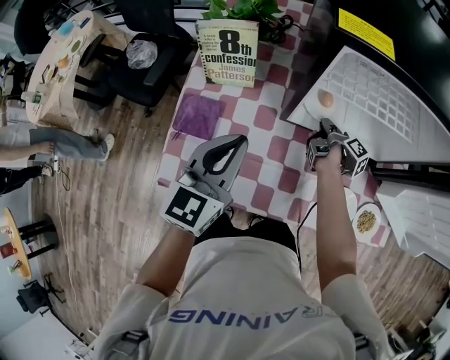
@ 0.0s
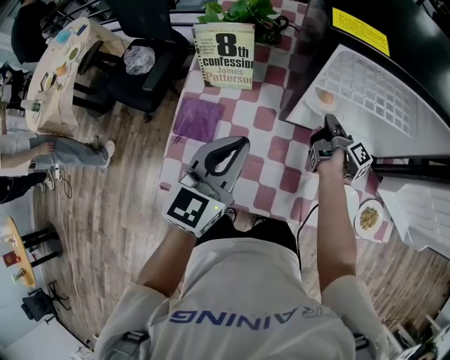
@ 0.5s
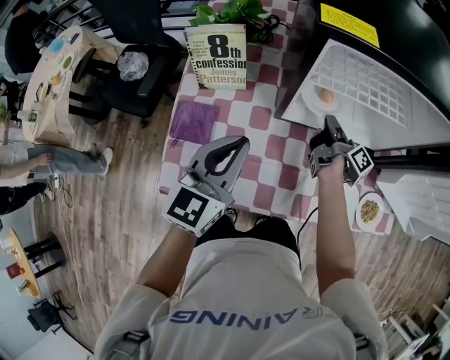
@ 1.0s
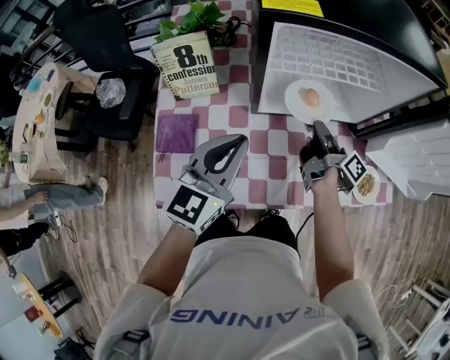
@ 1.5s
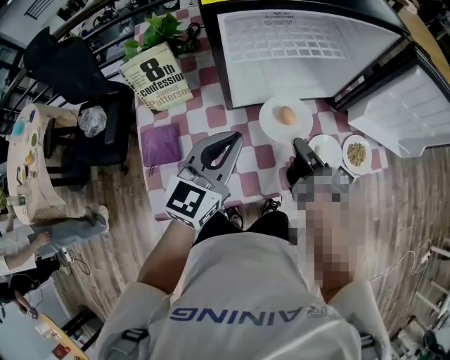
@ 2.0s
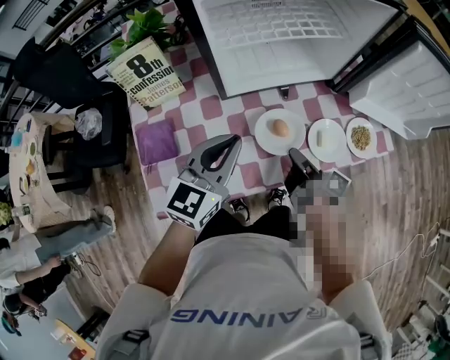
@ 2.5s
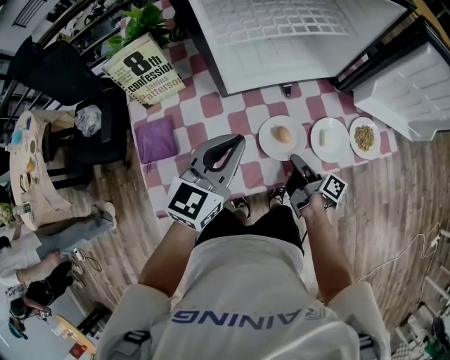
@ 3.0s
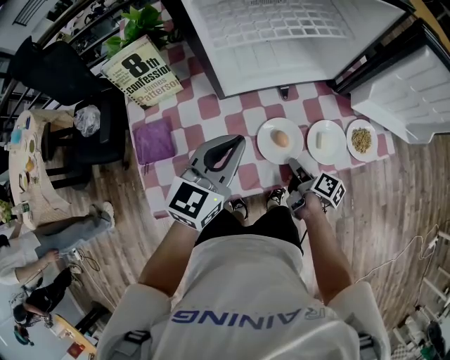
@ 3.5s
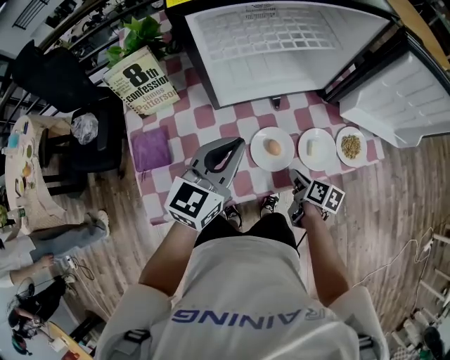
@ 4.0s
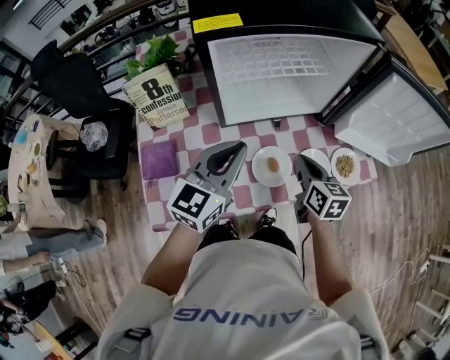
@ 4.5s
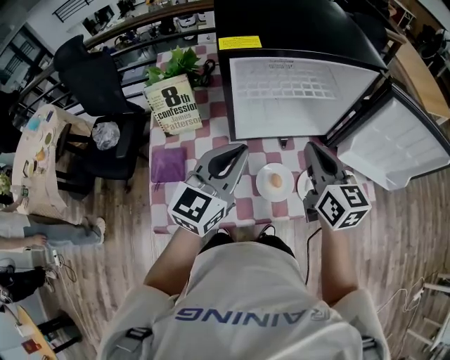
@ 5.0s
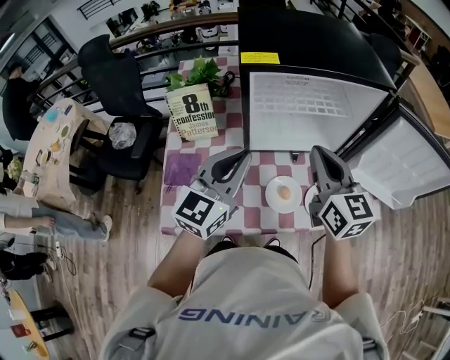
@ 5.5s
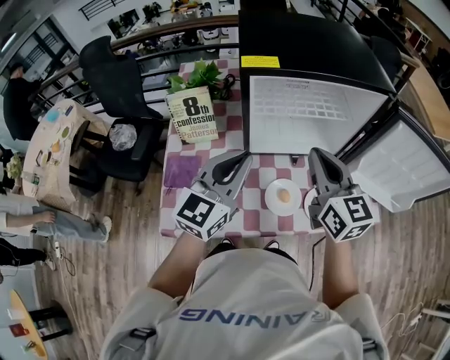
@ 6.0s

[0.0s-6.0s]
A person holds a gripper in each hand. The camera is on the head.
0.0s to 2.0s: The left gripper goes roughly 10 cm to the right, and turns by approximately 30 degrees. Meanwhile the right gripper heads backward and upward, covering about 20 cm, and swivels about 20 degrees.
2.0s to 4.0s: The right gripper moves downward, backward and to the right, some 15 cm, and tilts its fingers roughly 40 degrees downward; the left gripper moves some 5 cm.
4.0s to 6.0s: The right gripper travels upward by some 35 cm, and rolls counterclockwise, seen from behind, by approximately 50 degrees. Meanwhile the left gripper shifts roughly 10 cm upward.

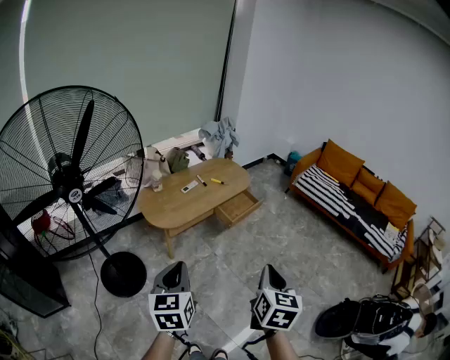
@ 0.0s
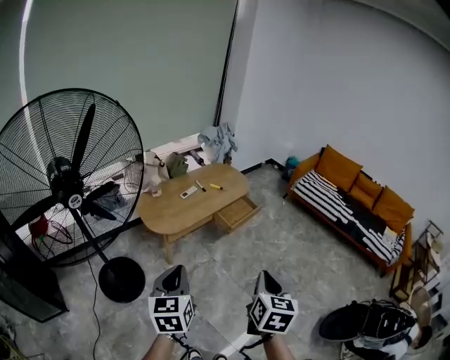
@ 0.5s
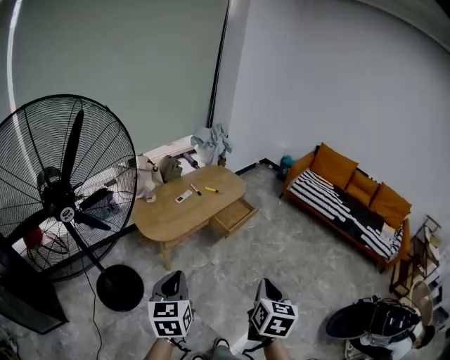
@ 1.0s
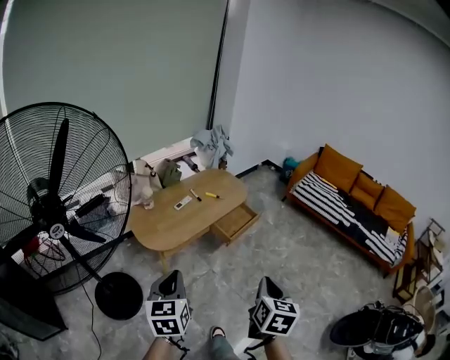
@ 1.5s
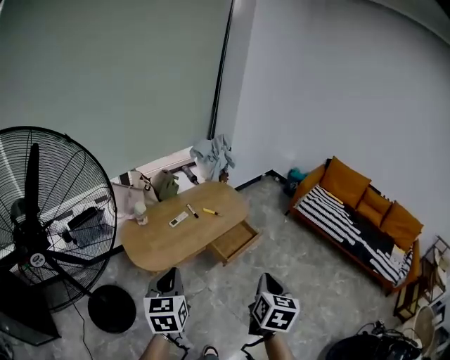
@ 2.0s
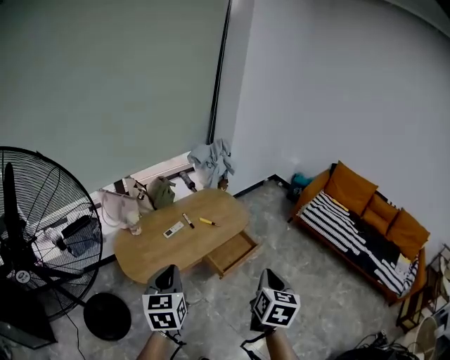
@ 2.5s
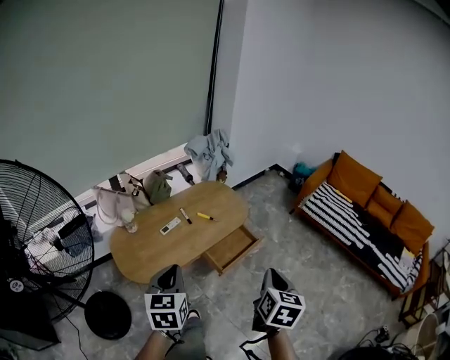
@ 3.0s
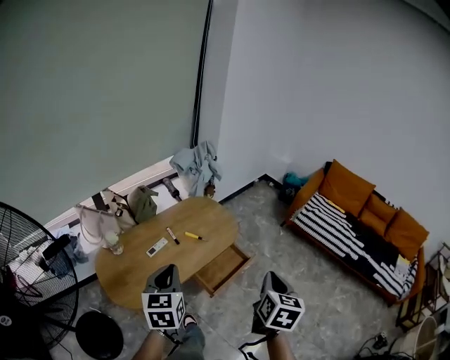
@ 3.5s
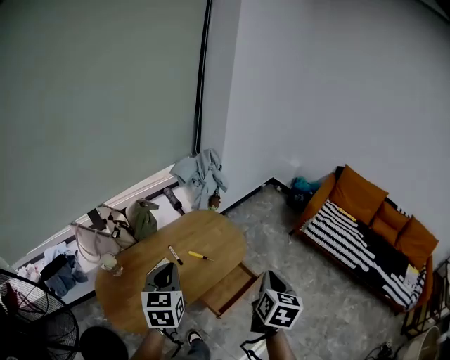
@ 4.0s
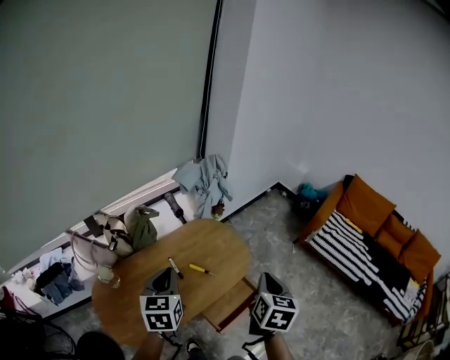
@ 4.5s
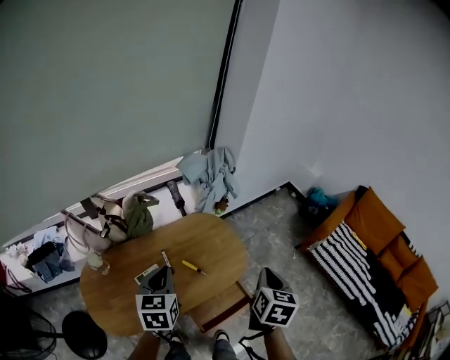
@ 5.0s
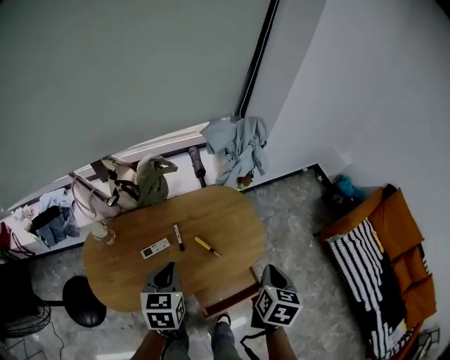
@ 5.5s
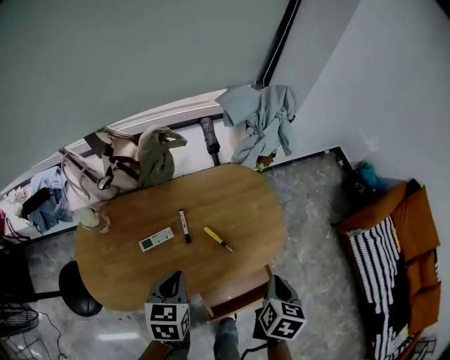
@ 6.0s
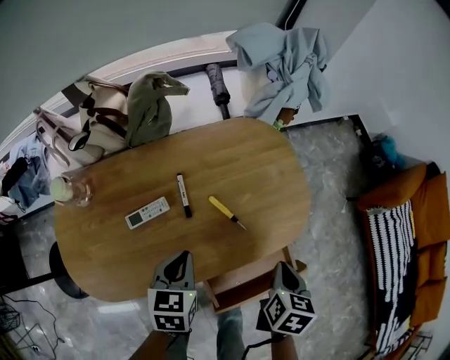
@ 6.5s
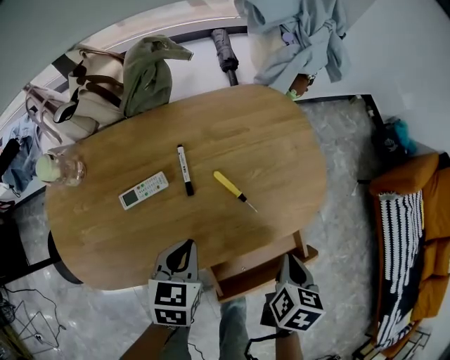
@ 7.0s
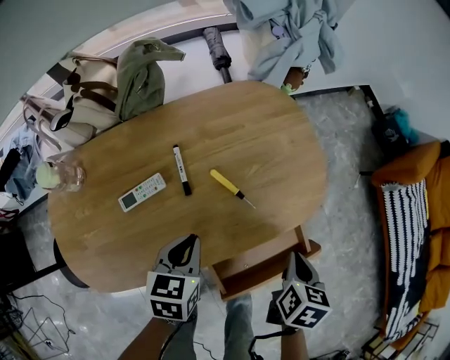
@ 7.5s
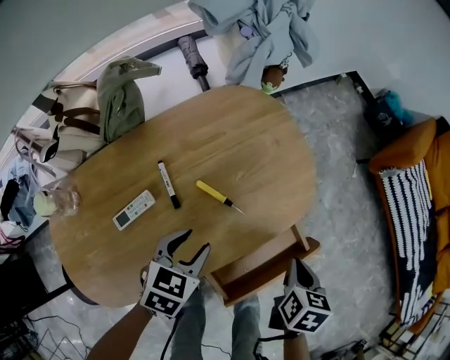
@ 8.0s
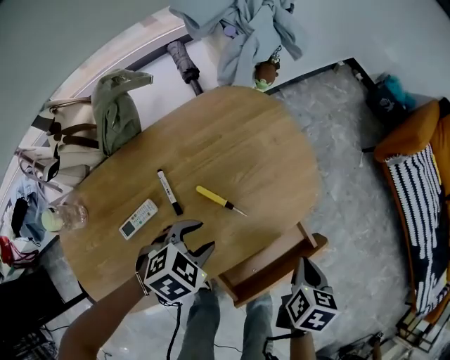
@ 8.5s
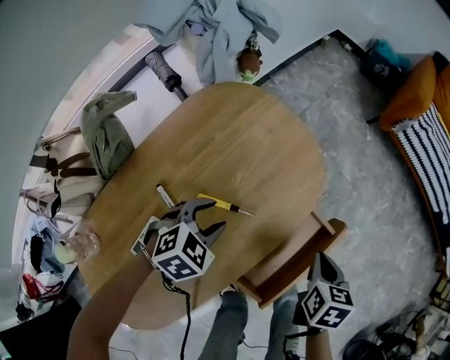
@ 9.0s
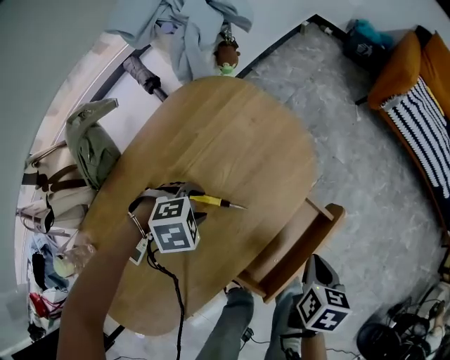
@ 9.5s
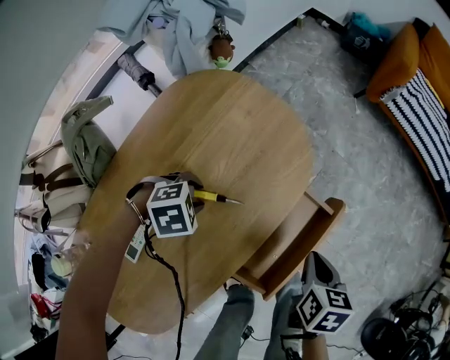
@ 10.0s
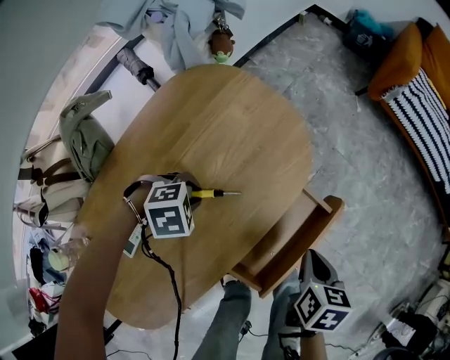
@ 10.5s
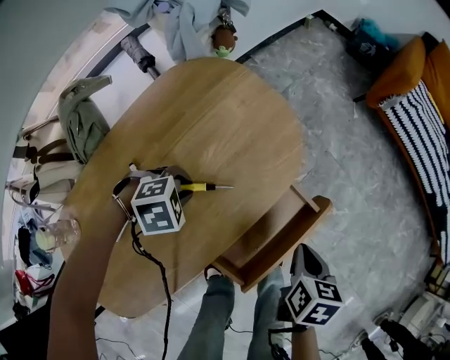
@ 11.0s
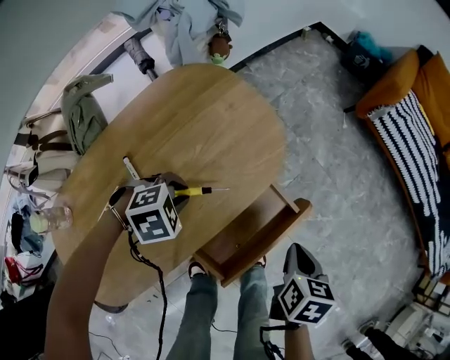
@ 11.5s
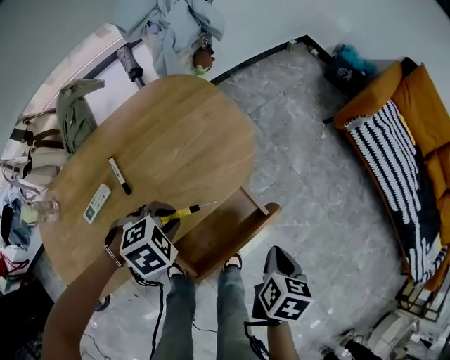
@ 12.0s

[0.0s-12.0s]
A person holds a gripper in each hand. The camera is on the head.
0.0s to 2.0s: Both grippers travel together forward, roughly 30 cm.
2.0s to 4.0s: The two grippers travel together, forward, some 40 cm.
4.0s to 6.0s: The two grippers go about 30 cm downward and forward. The right gripper changes its angle by approximately 30 degrees, while the left gripper changes its angle by approximately 30 degrees.
6.0s to 8.0s: Both grippers travel together downward, about 20 cm. The left gripper changes its angle by roughly 40 degrees, and opens up.
8.0s to 10.0s: The left gripper changes place by about 15 cm, and rotates around the line of its fingers by some 70 degrees, clockwise from behind. The right gripper shifts by some 5 cm.
10.0s to 12.0s: The left gripper changes place by roughly 20 cm, rotates some 30 degrees, and closes its fingers, while the right gripper moves some 10 cm.

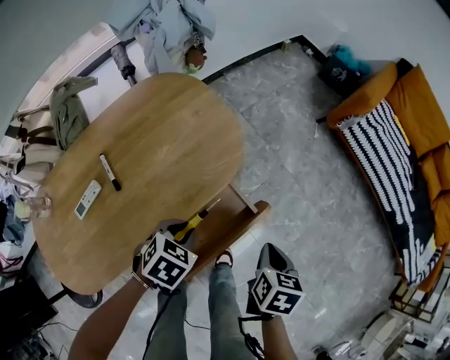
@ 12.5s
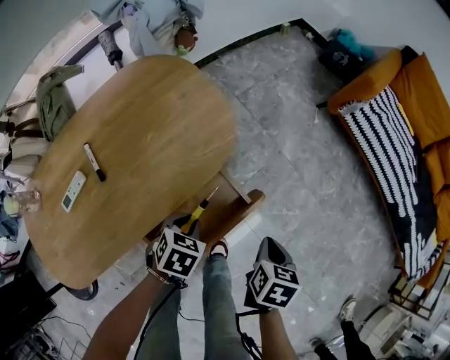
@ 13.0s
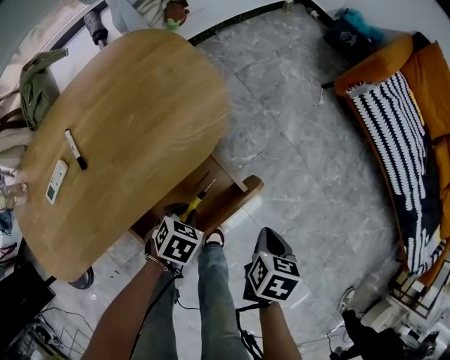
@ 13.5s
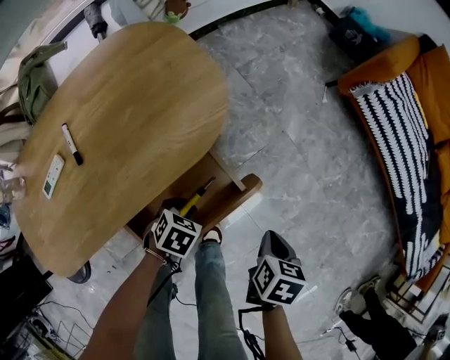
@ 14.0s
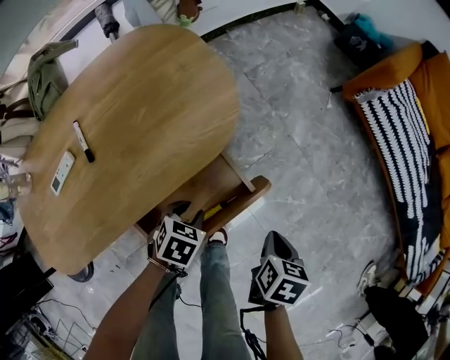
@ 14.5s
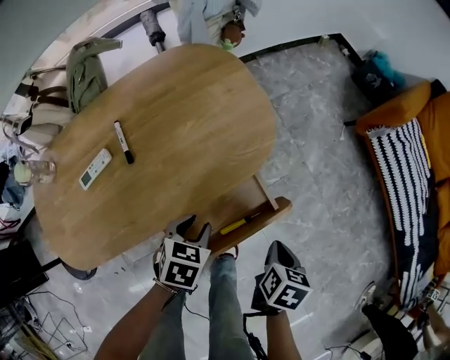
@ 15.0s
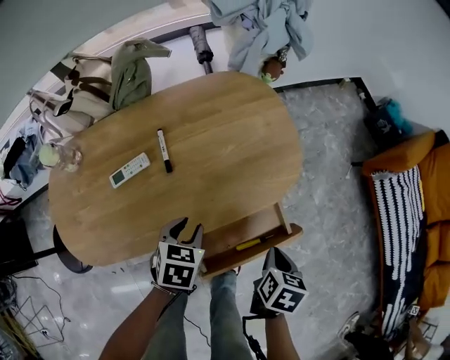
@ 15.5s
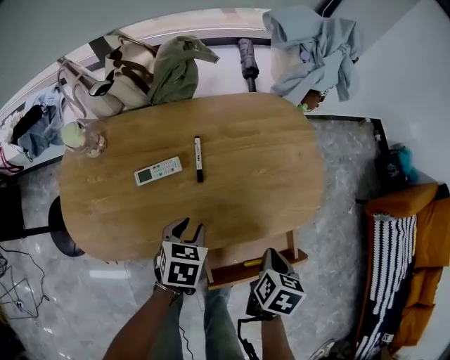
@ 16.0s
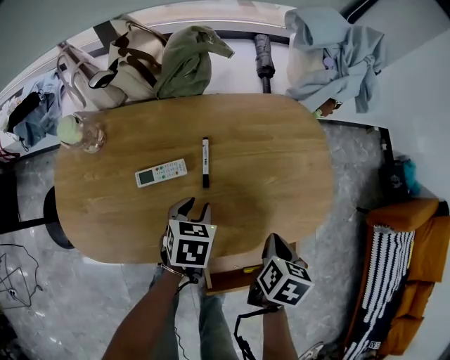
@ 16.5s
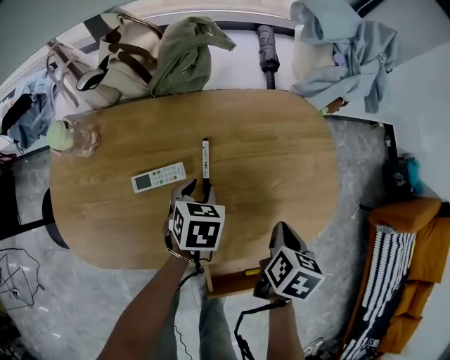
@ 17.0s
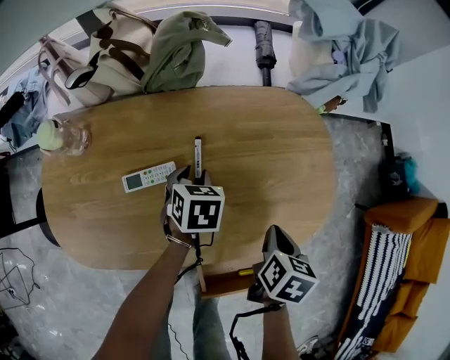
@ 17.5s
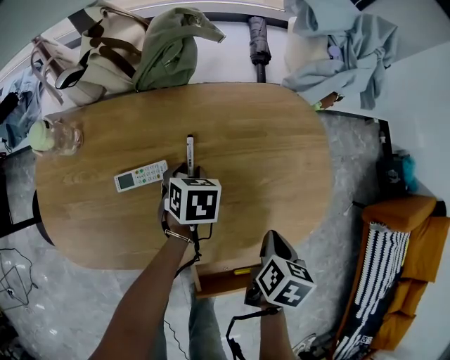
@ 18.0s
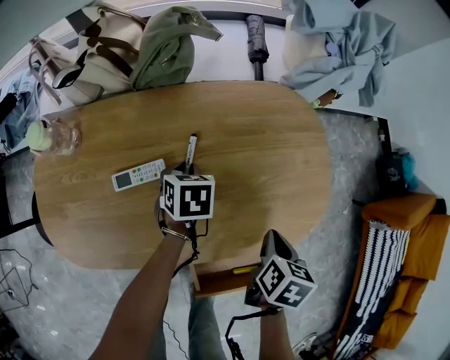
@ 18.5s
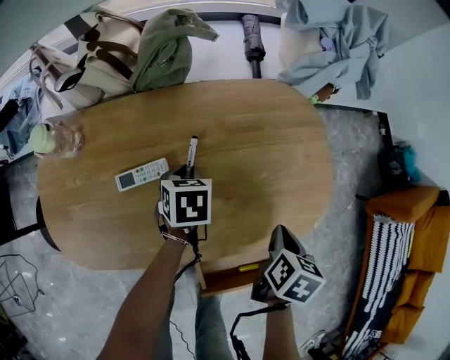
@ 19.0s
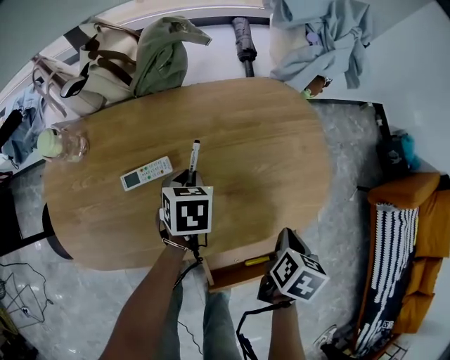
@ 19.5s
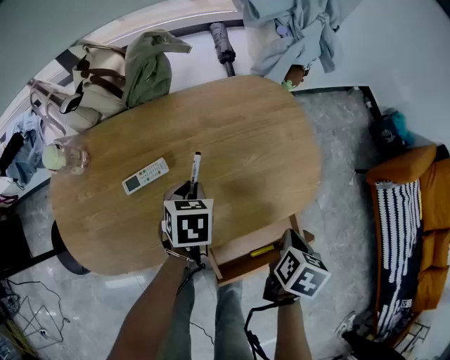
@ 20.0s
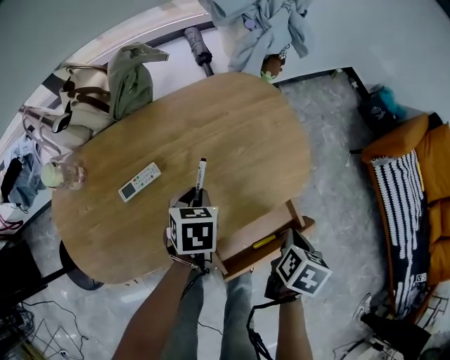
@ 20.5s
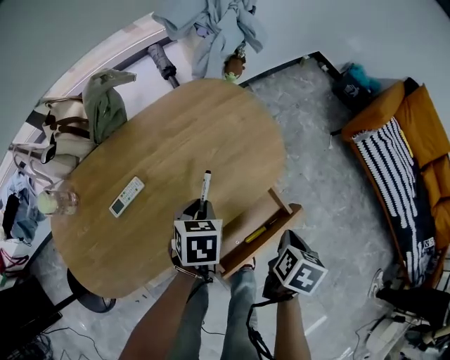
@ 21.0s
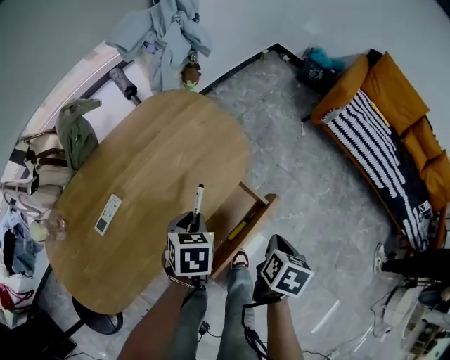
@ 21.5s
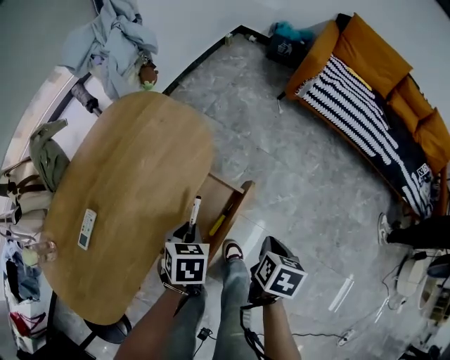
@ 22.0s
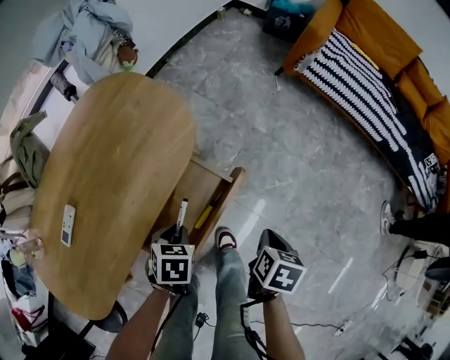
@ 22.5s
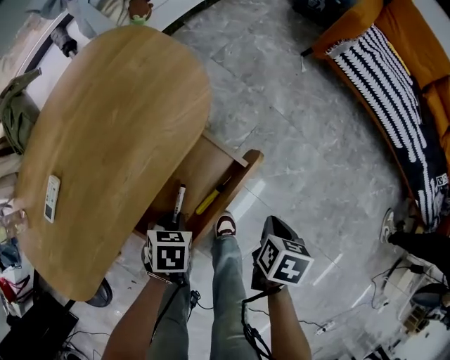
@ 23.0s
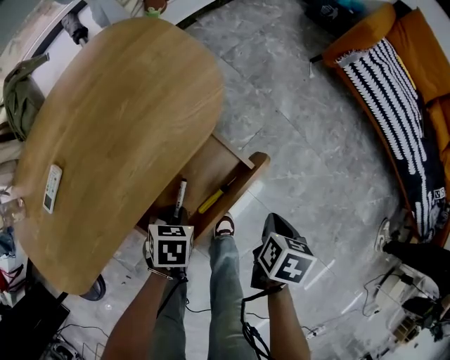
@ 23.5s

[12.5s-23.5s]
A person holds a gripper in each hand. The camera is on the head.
12.5s to 14.5s: Both grippers move downward and to the right, some 15 cm.
14.5s to 16.0s: The left gripper moves approximately 30 cm, and turns by about 40 degrees, while the right gripper moves roughly 25 cm, and swivels roughly 30 degrees.
16.0s to 18.0s: The left gripper shifts about 20 cm forward; the right gripper travels forward by some 10 cm.
18.0s to 20.0s: The left gripper goes some 10 cm backward and upward. Meanwhile the right gripper travels backward by roughly 10 cm.
20.0s to 21.5s: The right gripper moves approximately 15 cm, and rotates some 30 degrees, while the left gripper ends up about 20 cm from where it was, and turns by about 30 degrees.
21.5s to 23.5s: The two grippers go some 15 cm downward.
